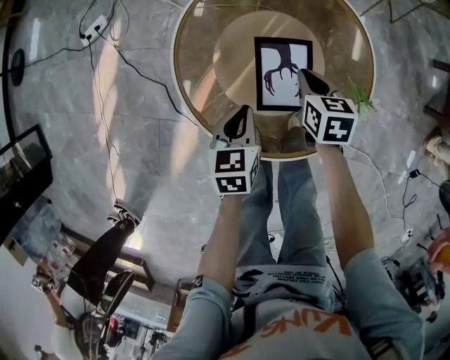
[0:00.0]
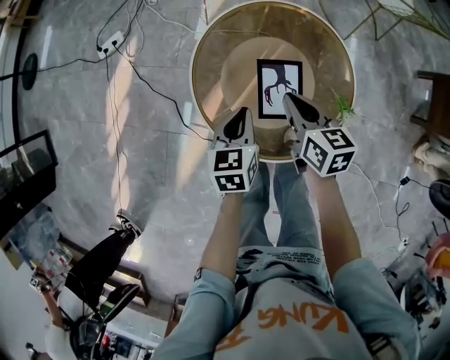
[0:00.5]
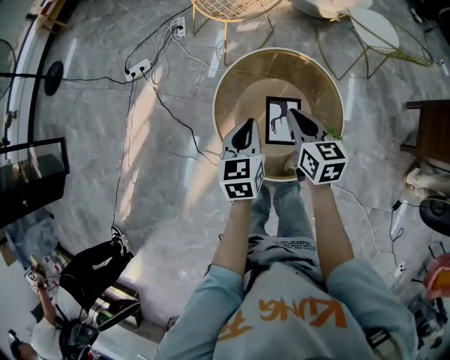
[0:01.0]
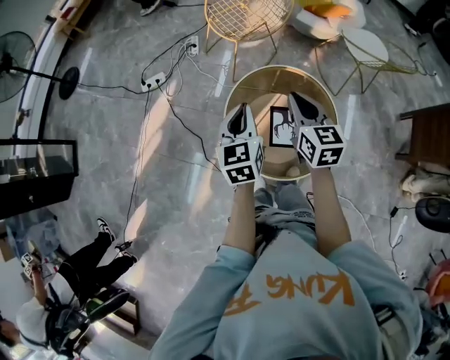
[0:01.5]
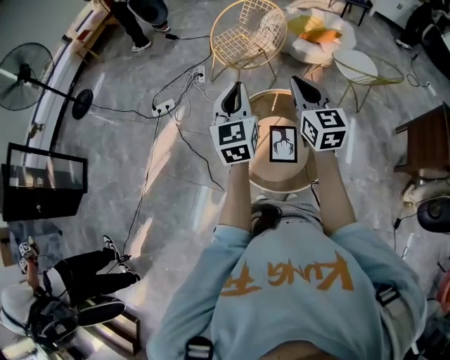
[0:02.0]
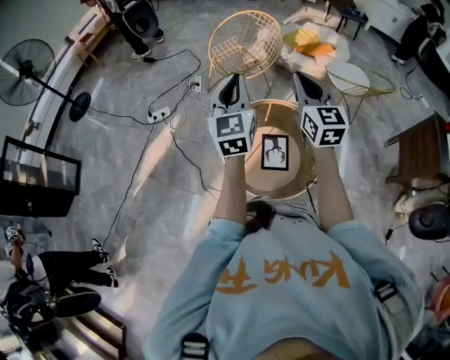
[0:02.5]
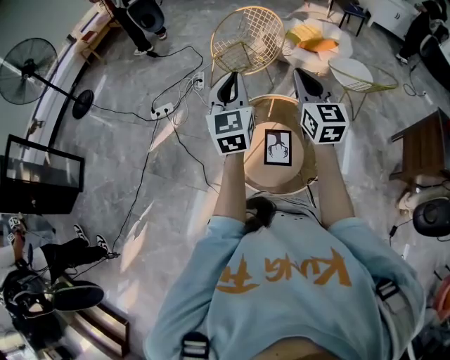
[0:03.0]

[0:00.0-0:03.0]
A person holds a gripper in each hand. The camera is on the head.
0:00.0 to 0:01.5: Both grippers move upward, roughly 40 cm. The left gripper turns by roughly 30 degrees, while the right gripper rotates approximately 30 degrees.
0:01.5 to 0:03.0: The two grippers go some 20 cm upward. The left gripper swivels about 20 degrees; the right gripper changes its angle by roughly 20 degrees.

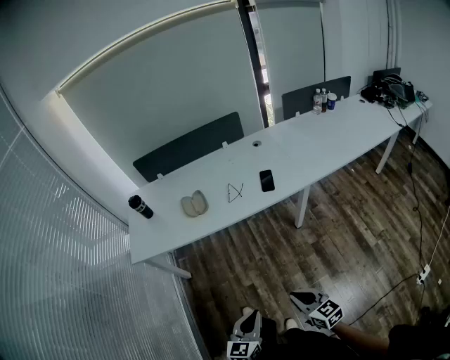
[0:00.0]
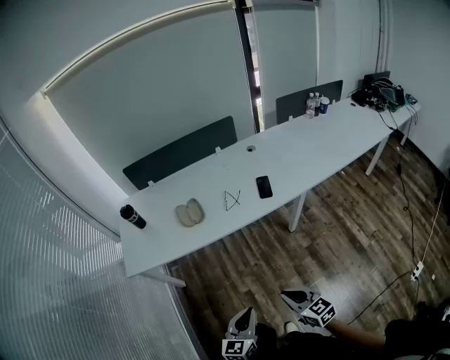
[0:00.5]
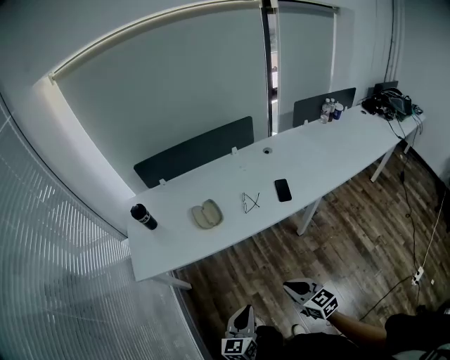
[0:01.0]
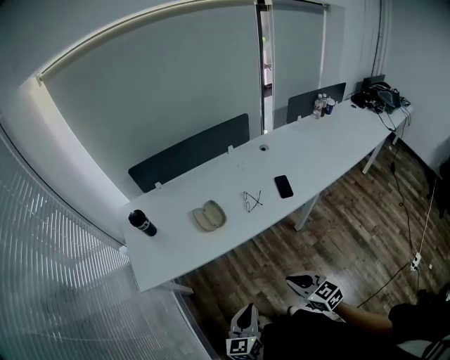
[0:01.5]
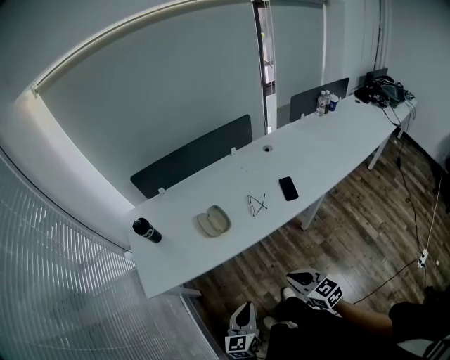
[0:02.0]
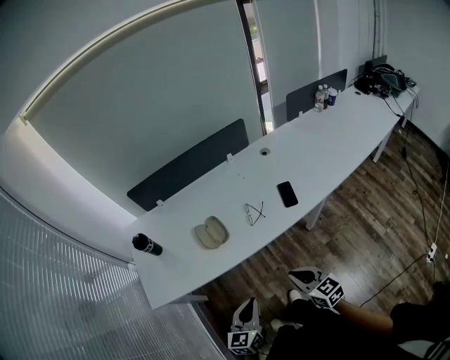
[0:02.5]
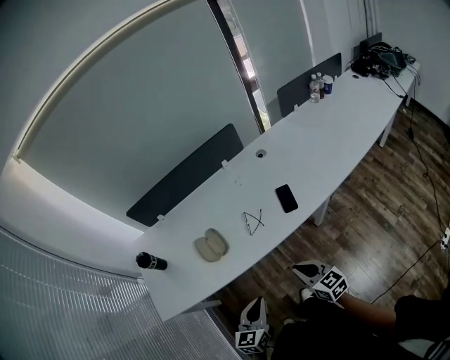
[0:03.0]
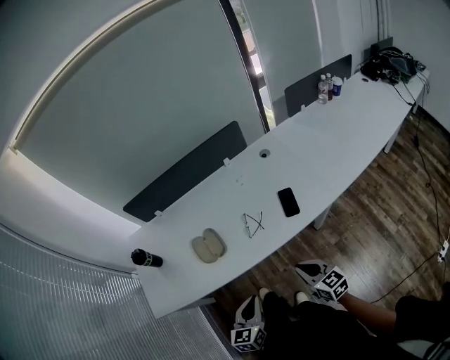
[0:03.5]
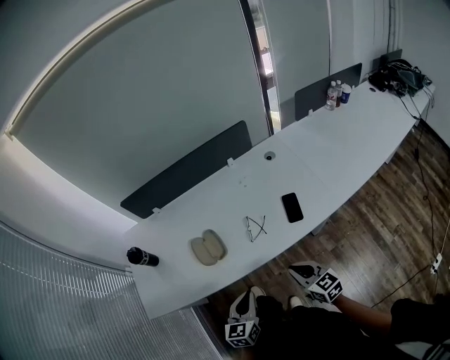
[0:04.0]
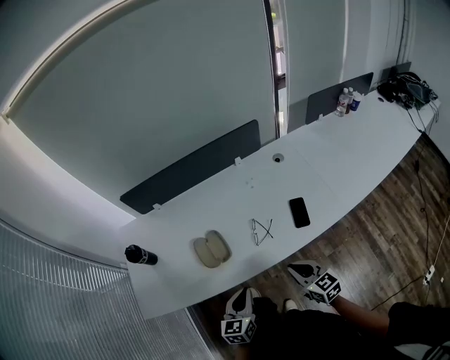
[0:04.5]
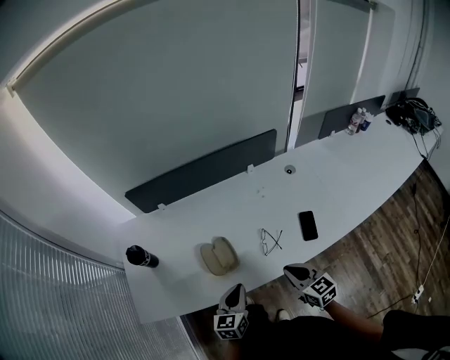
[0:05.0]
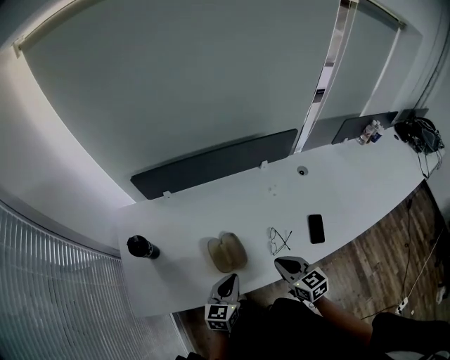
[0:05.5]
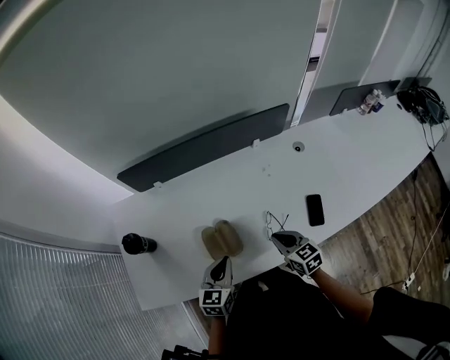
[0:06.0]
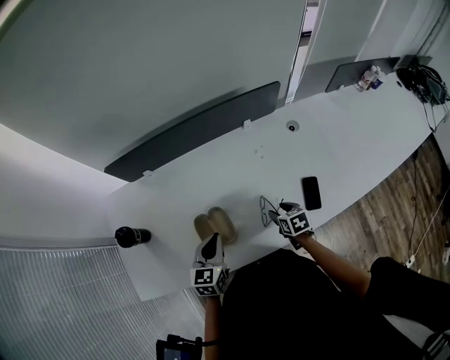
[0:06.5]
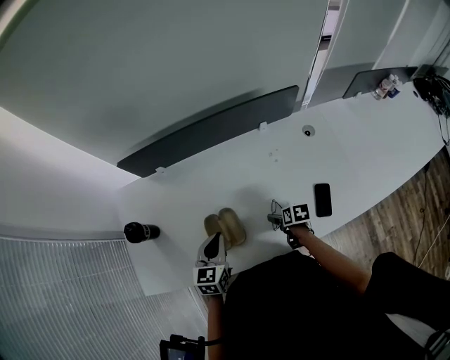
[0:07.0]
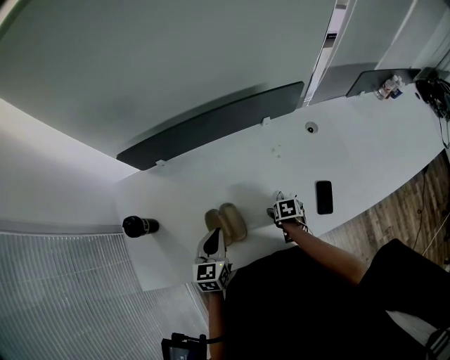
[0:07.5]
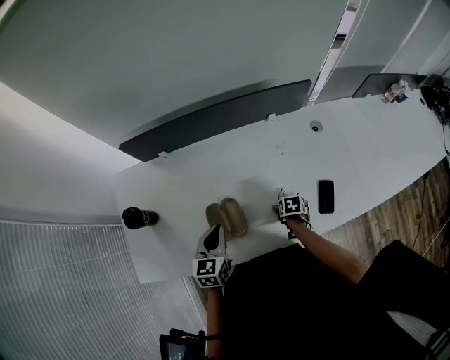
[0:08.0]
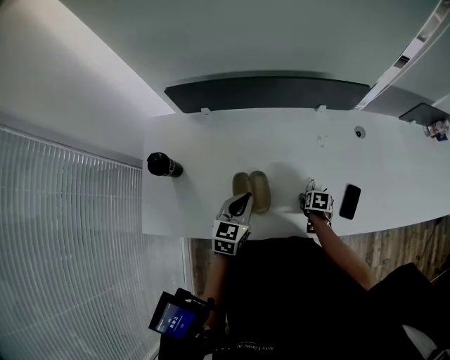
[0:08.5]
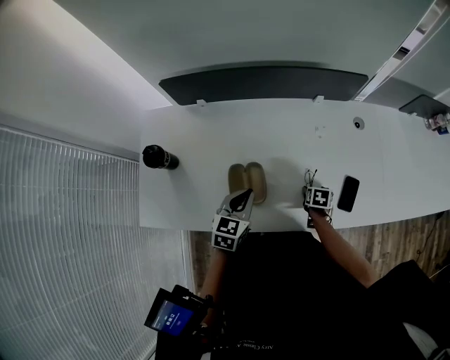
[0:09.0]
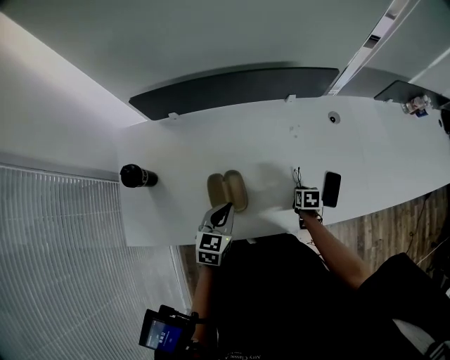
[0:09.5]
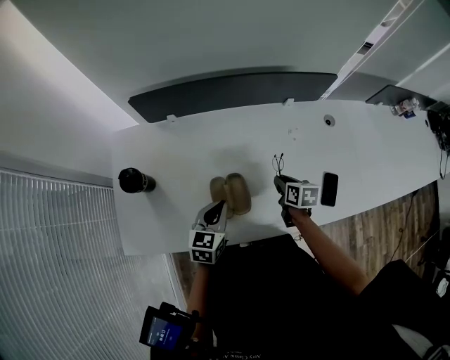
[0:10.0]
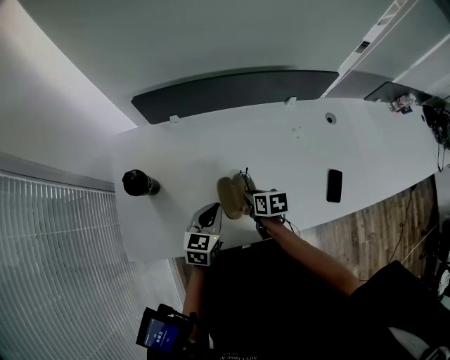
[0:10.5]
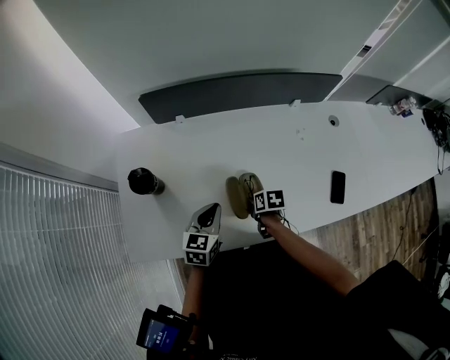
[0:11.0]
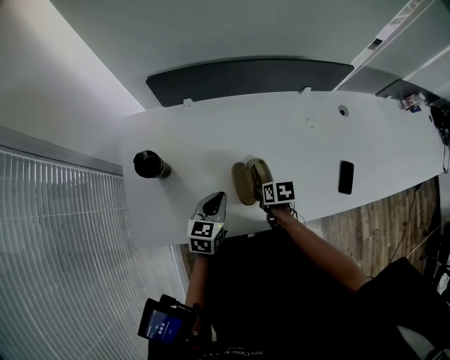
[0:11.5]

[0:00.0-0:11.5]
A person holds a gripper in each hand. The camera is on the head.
0:00.0 to 0:02.0: Both grippers move forward and to the left, some 30 cm.
0:02.0 to 0:04.0: Both grippers move forward and to the right, approximately 20 cm.
0:04.0 to 0:06.0: Both grippers travel together forward and to the left, approximately 25 cm.
0:06.0 to 0:07.5: The left gripper moves forward, some 5 cm; the right gripper heads downward, covering about 20 cm, tips its fingers downward by roughly 40 degrees, and opens.
0:07.5 to 0:09.5: The left gripper changes place by some 5 cm; the right gripper shifts by approximately 5 cm, and closes.
0:09.5 to 0:11.5: The left gripper goes roughly 15 cm to the left; the right gripper goes roughly 25 cm to the left.

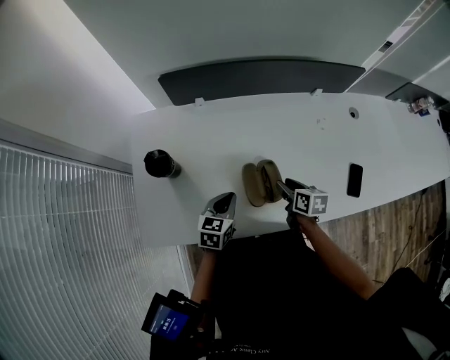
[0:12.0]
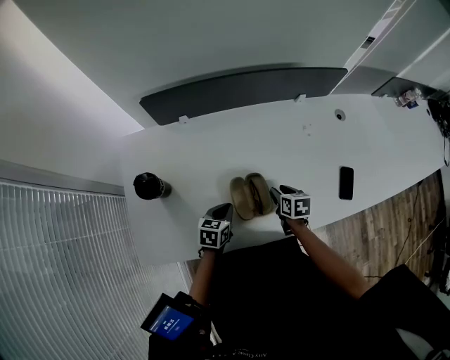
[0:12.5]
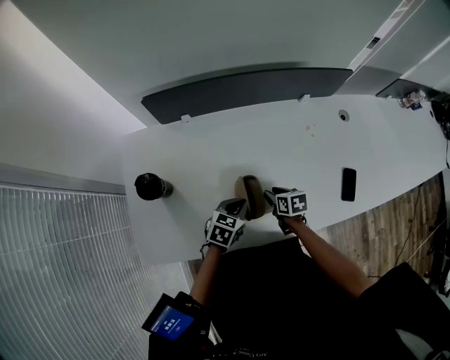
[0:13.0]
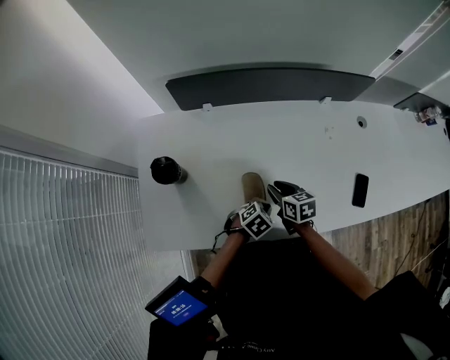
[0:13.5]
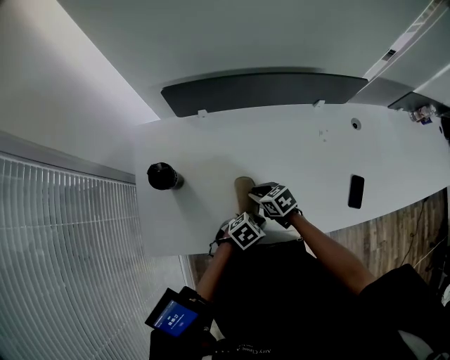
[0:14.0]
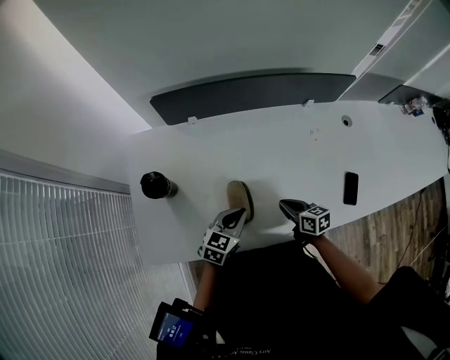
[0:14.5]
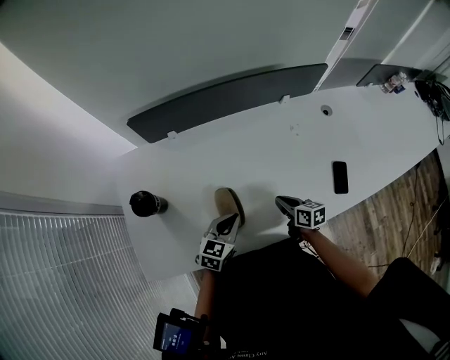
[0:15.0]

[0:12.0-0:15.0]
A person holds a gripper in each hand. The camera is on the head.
0:12.0 to 0:13.5: The left gripper is displaced to the right and downward by approximately 15 cm, and rotates roughly 40 degrees; the right gripper heads to the left, covering roughly 5 cm.
0:13.5 to 0:15.0: The left gripper is displaced upward by roughly 10 cm, and swivels some 40 degrees; the right gripper shifts by approximately 10 cm.

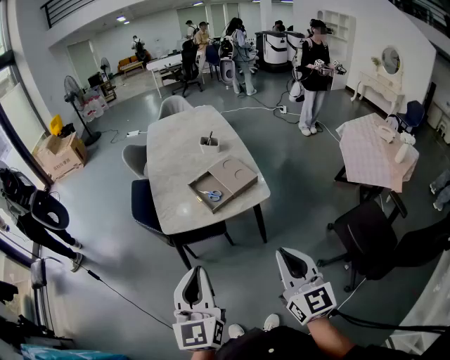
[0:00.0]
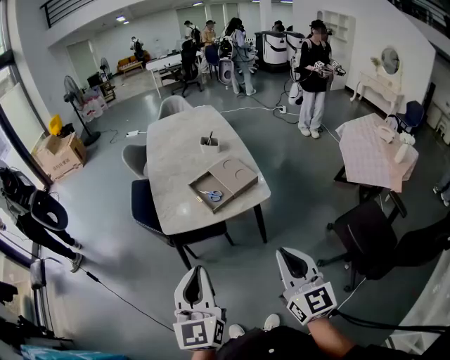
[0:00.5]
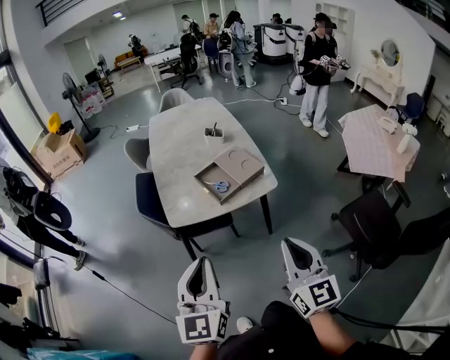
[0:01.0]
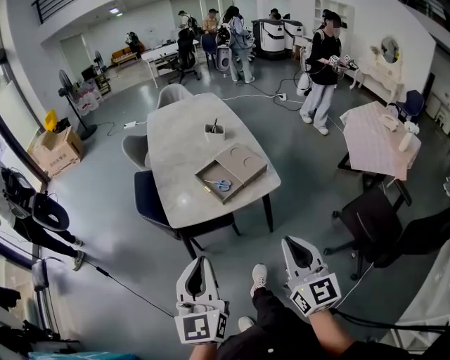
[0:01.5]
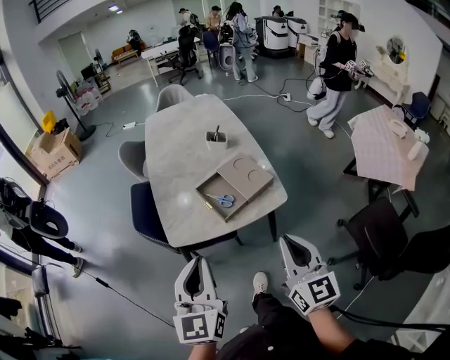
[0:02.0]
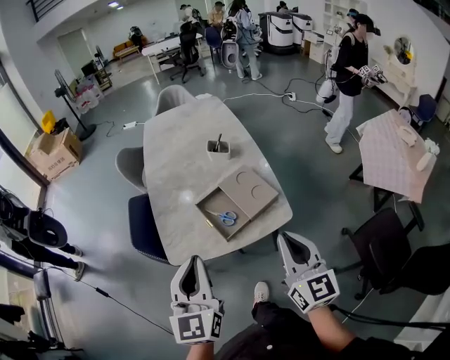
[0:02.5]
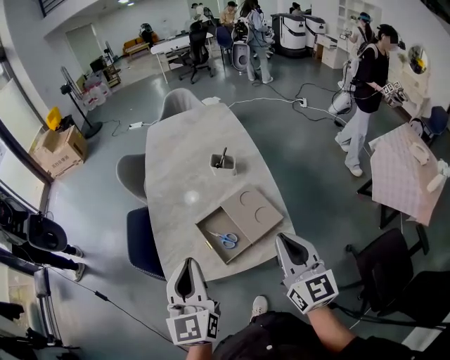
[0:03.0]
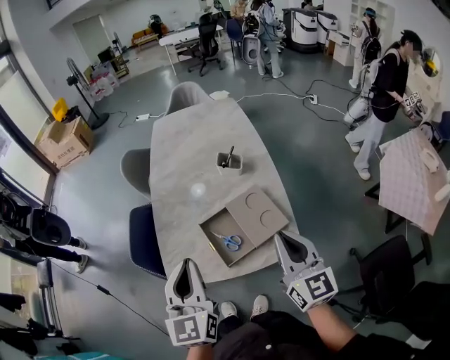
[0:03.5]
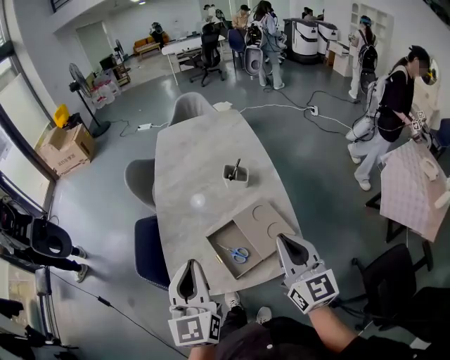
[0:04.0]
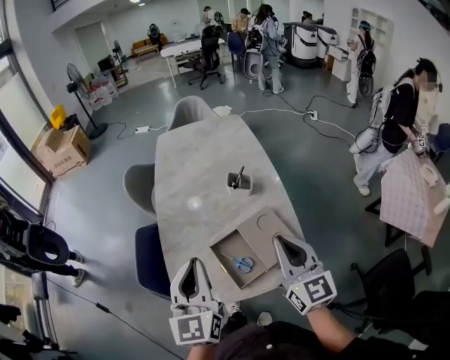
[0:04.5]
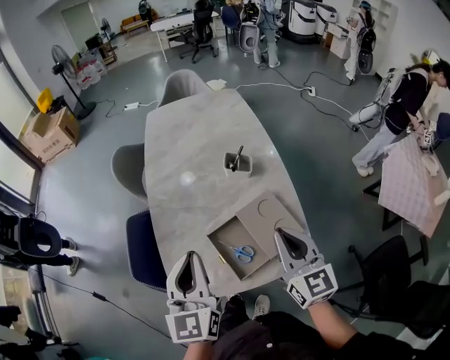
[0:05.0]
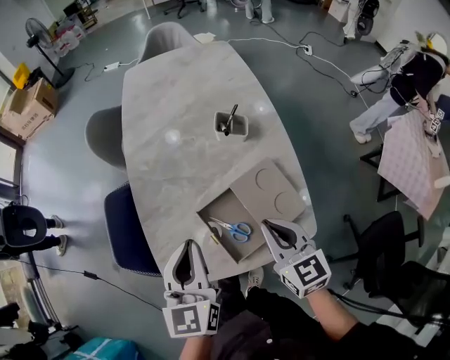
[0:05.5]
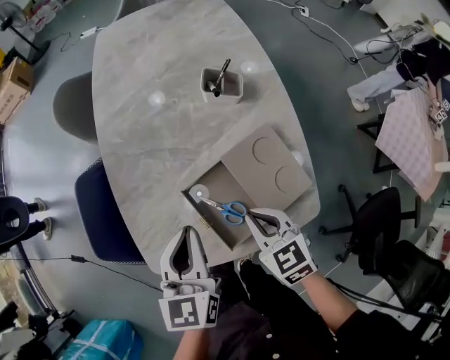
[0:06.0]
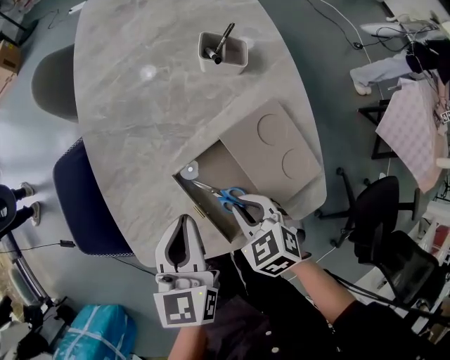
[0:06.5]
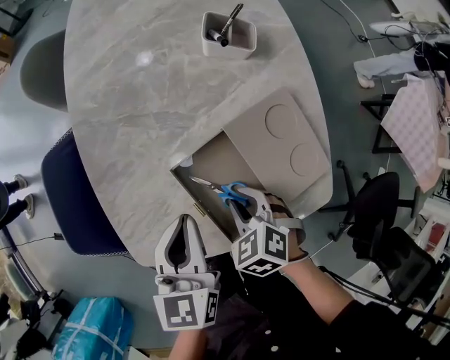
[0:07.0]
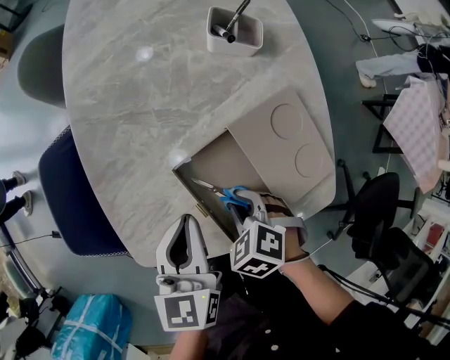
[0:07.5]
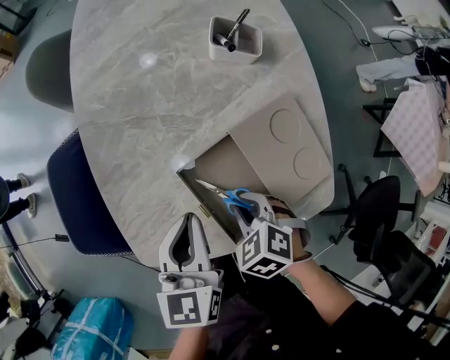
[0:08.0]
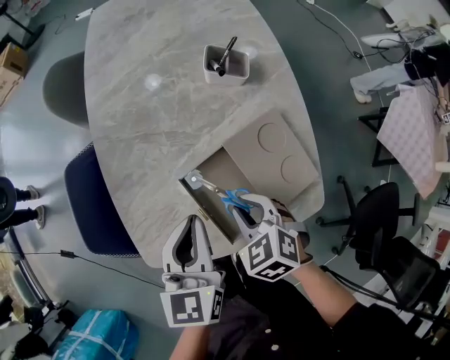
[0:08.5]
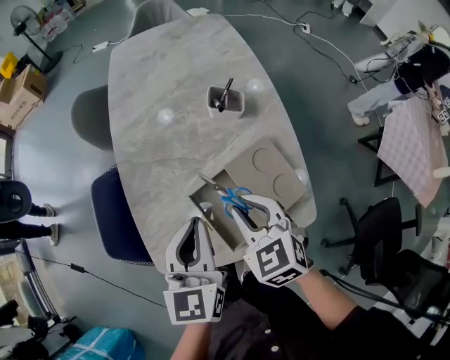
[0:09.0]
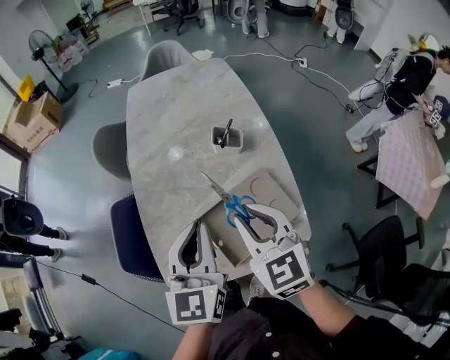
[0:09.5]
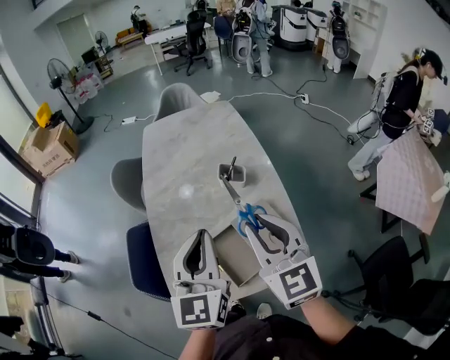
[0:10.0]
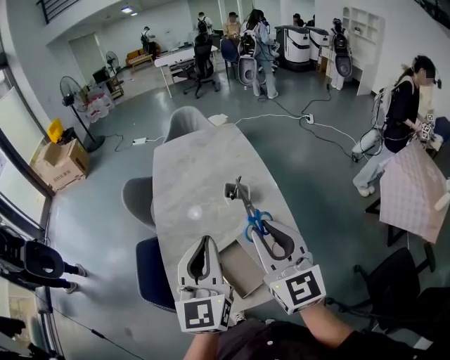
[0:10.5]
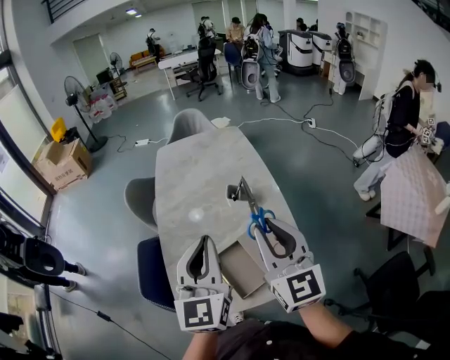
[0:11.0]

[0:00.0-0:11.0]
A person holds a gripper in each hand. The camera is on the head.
0:00.0 to 0:02.0: Both grippers travel together forward, some 15 cm.
0:02.0 to 0:03.5: The two grippers go some 25 cm forward.
0:03.5 to 0:05.5: The right gripper heads downward, forward and to the left, covering roughly 20 cm, and changes its angle by some 20 degrees, while the left gripper heads forward and downward, covering some 15 cm.
0:05.5 to 0:07.5: Both grippers move downward, some 20 cm. The right gripper tips its fingers downward by roughly 50 degrees, and opens up.
0:07.5 to 0:09.0: The grippers both shift upward by roughly 20 cm. The right gripper tips its fingers upward by roughly 30 degrees.
0:09.0 to 0:11.0: Both grippers move upward, approximately 25 cm. The right gripper angles its fingers upward, by about 50 degrees; the left gripper turns by approximately 20 degrees.
